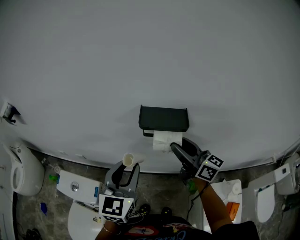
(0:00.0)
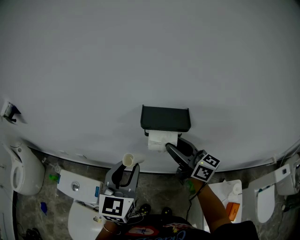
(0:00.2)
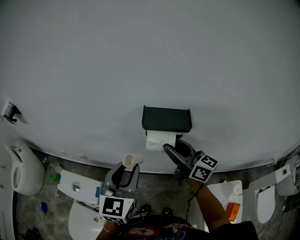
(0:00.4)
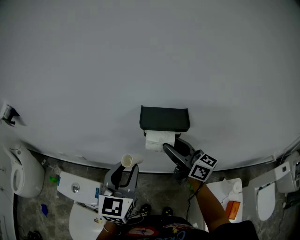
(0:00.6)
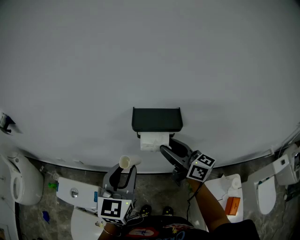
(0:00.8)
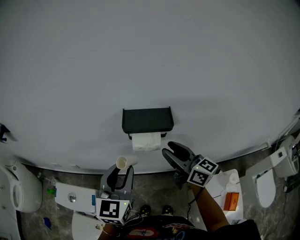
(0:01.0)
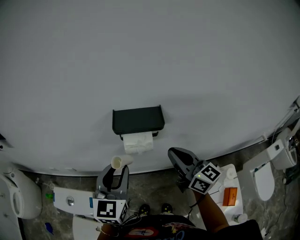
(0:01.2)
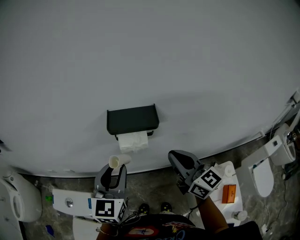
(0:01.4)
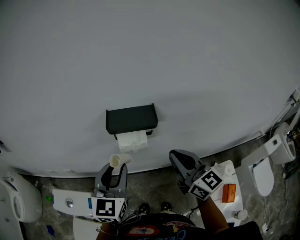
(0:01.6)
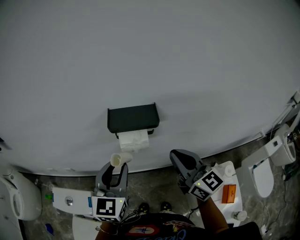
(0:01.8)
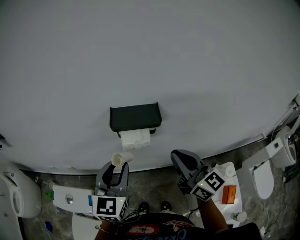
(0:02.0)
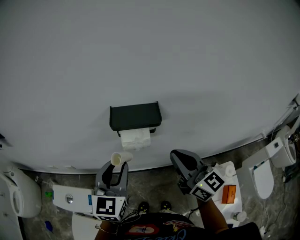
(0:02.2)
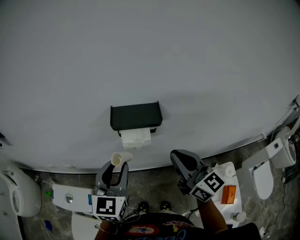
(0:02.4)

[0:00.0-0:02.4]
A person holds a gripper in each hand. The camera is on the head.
0:00.0 to 0:01.2: The right gripper goes approximately 5 cm backward, and closes.
0:01.2 to 0:02.4: The grippers stay close to where they were, moving slightly.

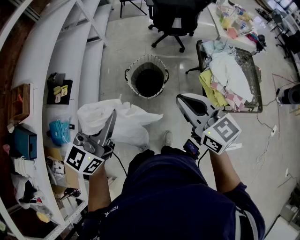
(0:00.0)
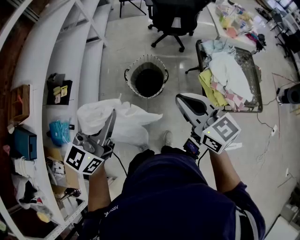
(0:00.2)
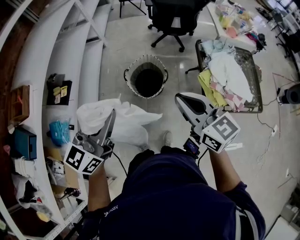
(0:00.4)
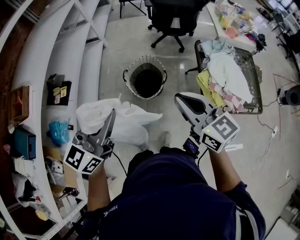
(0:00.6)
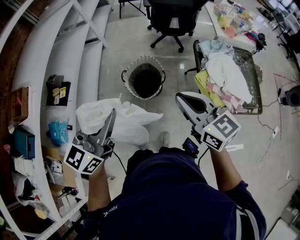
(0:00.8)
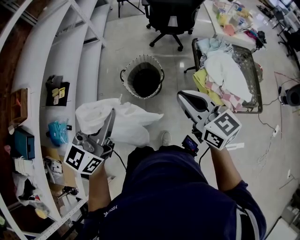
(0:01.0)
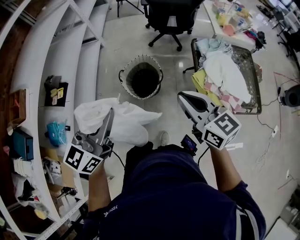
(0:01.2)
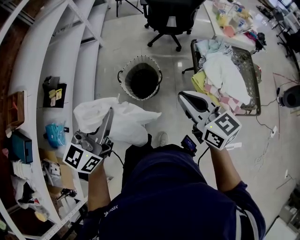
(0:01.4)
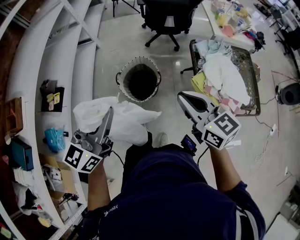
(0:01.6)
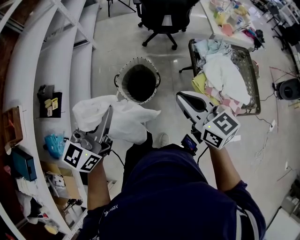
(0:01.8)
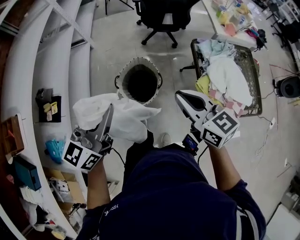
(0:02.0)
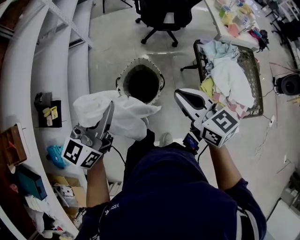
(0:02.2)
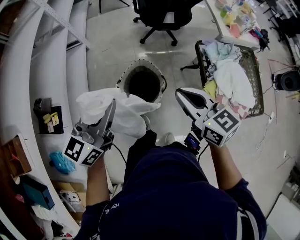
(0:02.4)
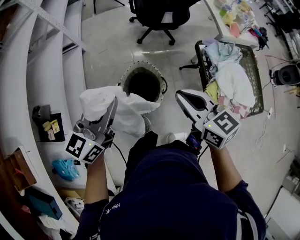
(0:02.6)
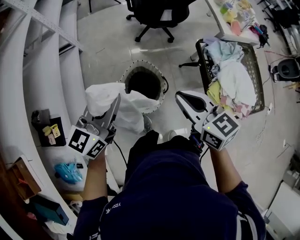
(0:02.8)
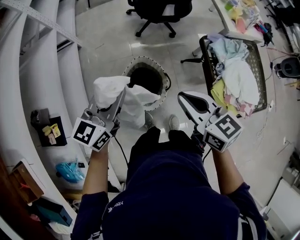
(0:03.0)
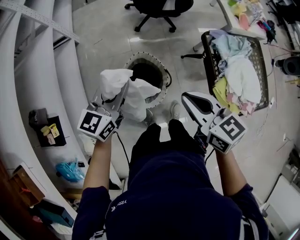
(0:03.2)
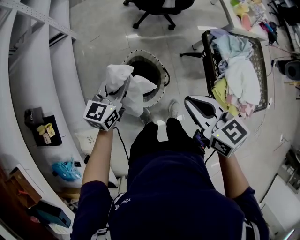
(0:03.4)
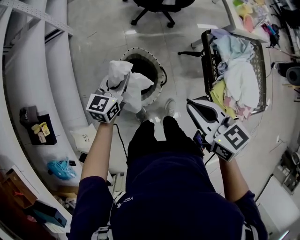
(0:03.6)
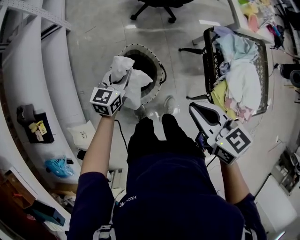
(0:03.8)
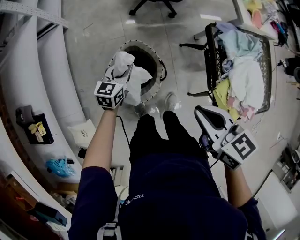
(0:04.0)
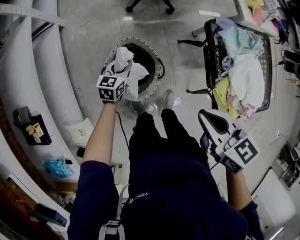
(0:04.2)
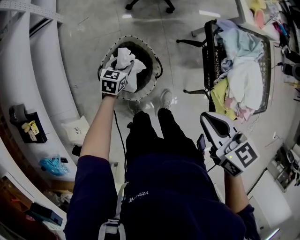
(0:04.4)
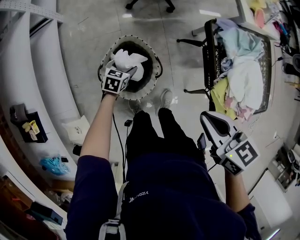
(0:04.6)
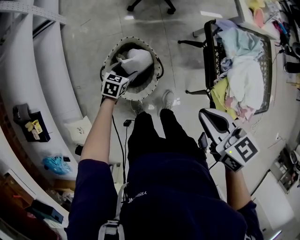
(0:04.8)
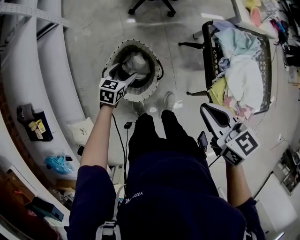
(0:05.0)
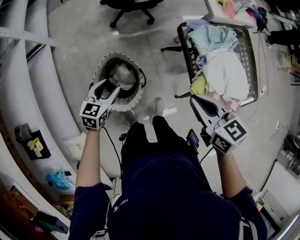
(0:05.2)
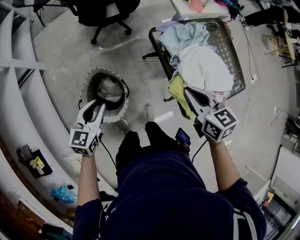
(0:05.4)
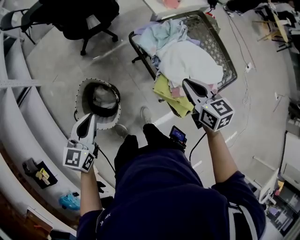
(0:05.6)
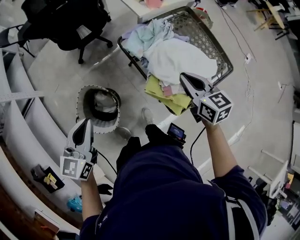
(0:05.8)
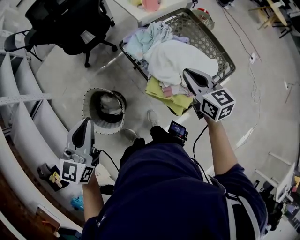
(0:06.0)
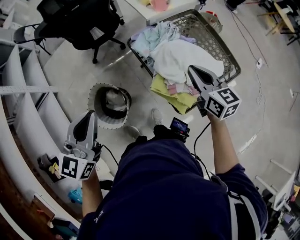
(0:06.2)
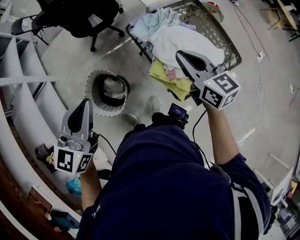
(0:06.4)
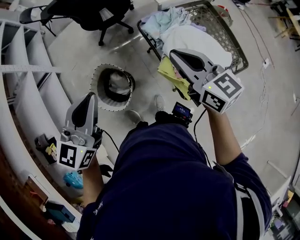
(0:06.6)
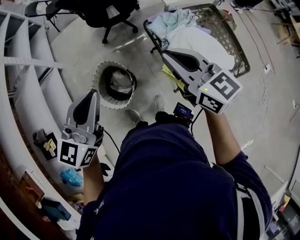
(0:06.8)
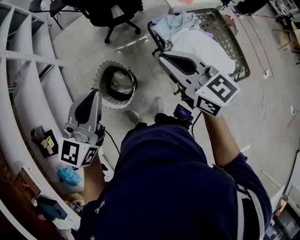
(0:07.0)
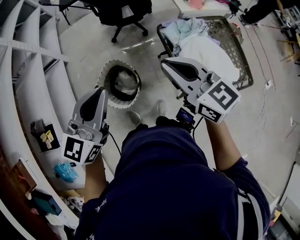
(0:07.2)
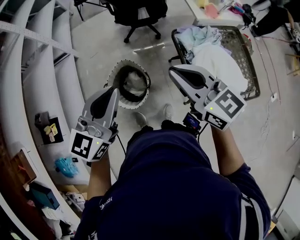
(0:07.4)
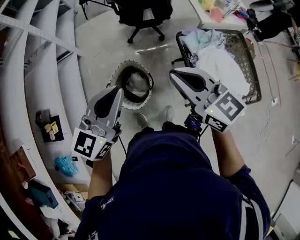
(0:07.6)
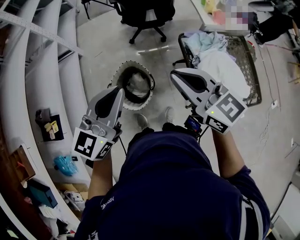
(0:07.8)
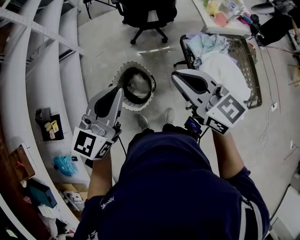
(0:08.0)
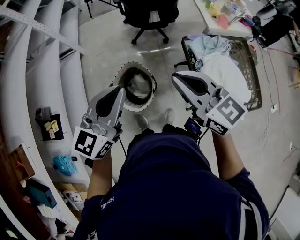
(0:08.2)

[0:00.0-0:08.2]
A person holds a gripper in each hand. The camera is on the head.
0:00.0 to 0:01.6: The right gripper is displaced to the right and forward by about 10 cm. The left gripper heads forward and to the right, covering approximately 10 cm.
0:01.6 to 0:03.2: The left gripper goes about 35 cm forward and downward. The right gripper is displaced forward, to the left and downward by roughly 25 cm.
0:03.2 to 0:05.0: The left gripper is displaced downward by about 30 cm, tips its fingers downward by roughly 30 degrees, and opens. The right gripper shifts about 15 cm to the right and downward.
0:05.0 to 0:06.6: The right gripper moves to the right and upward, roughly 25 cm, and turns by about 30 degrees. Meanwhile the left gripper heads upward and to the right, covering some 50 cm, points its fingers some 30 degrees further upward, and closes its fingers.
0:06.6 to 0:08.2: The right gripper is displaced to the left by about 20 cm, and swivels about 20 degrees, while the left gripper is displaced to the left by approximately 10 cm.

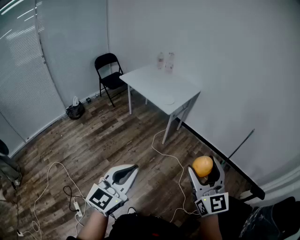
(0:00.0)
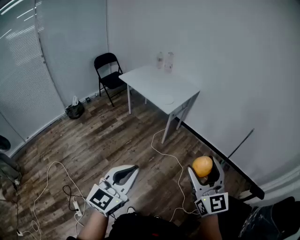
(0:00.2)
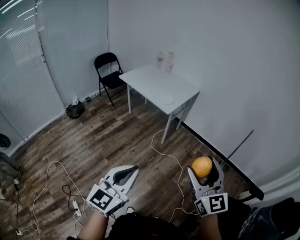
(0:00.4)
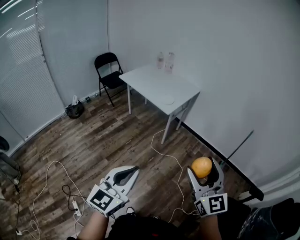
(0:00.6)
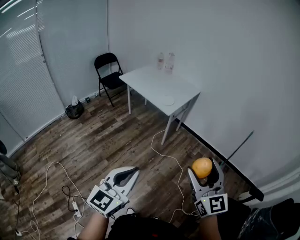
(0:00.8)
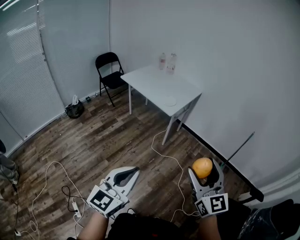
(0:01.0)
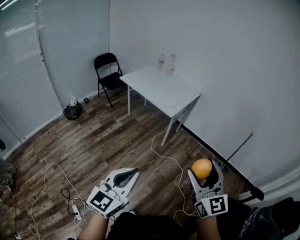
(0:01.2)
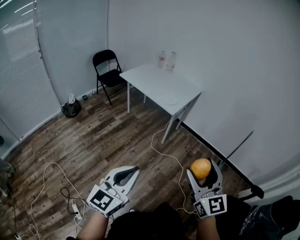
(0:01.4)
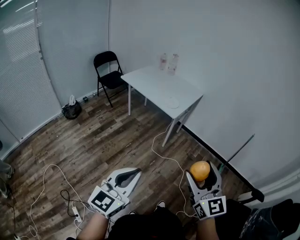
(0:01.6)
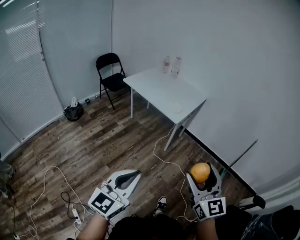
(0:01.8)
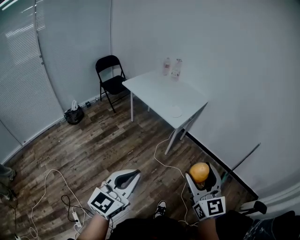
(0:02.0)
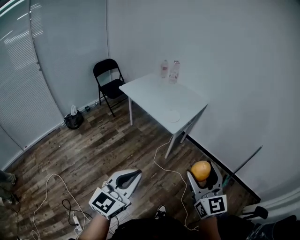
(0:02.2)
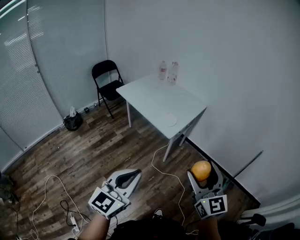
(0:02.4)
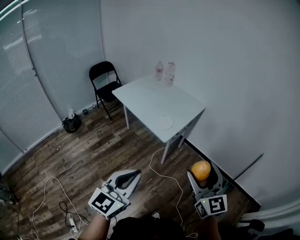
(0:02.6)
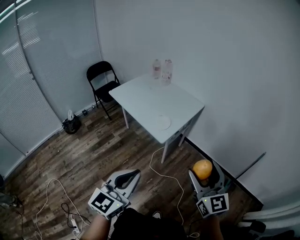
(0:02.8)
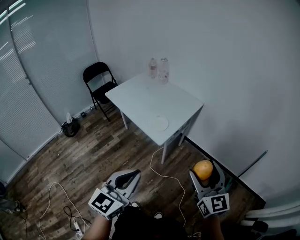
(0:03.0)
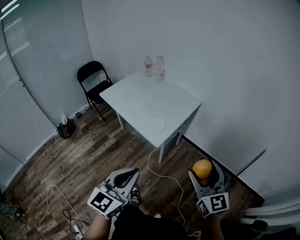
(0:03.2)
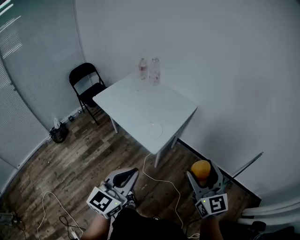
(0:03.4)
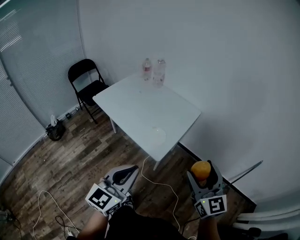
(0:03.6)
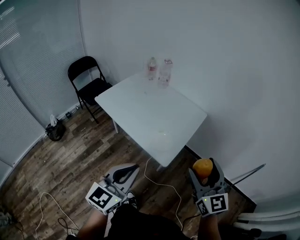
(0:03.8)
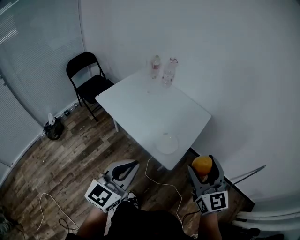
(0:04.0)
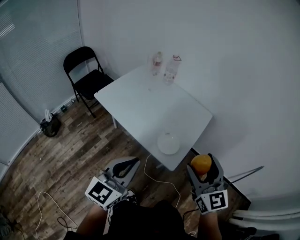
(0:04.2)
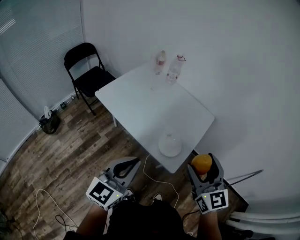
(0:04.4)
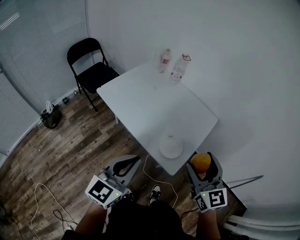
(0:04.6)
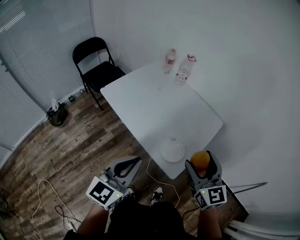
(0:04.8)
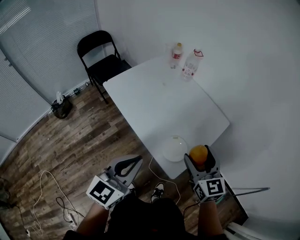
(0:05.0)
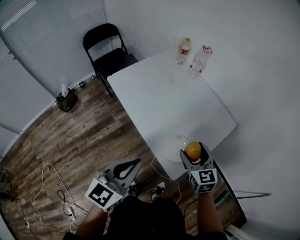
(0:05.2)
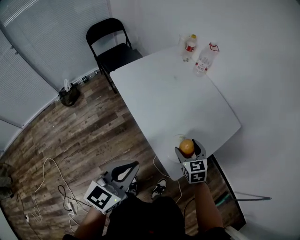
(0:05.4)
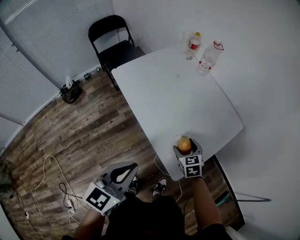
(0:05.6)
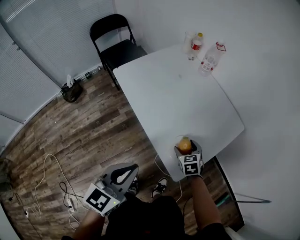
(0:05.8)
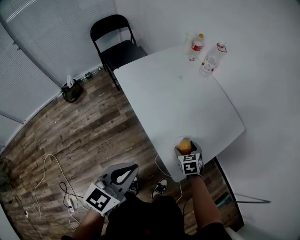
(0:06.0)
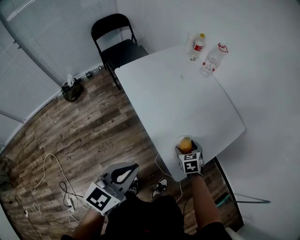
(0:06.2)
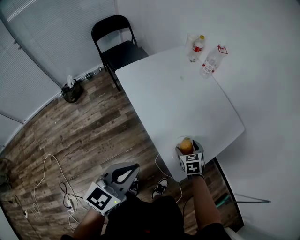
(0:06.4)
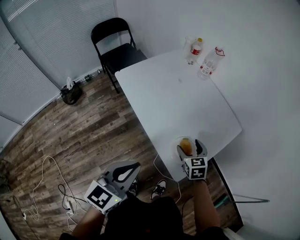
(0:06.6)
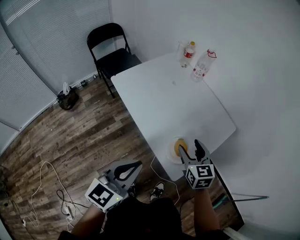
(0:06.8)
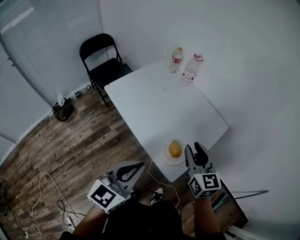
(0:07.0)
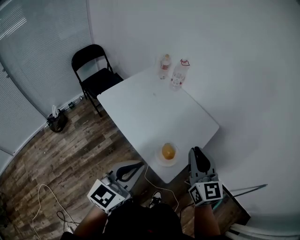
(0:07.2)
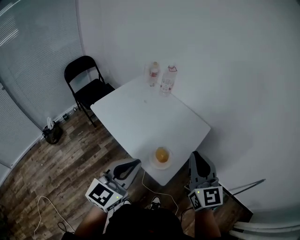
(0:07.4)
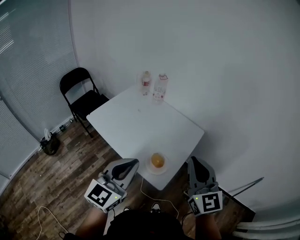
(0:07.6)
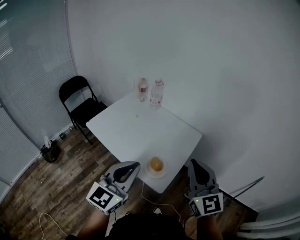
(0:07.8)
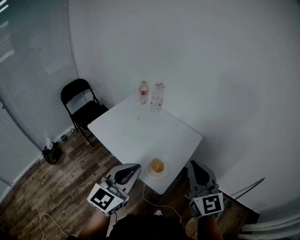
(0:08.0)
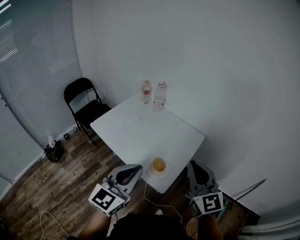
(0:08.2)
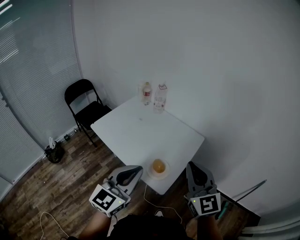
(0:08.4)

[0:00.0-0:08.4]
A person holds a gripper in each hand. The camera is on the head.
0:00.0 to 0:01.4: Both grippers move to the left, about 5 cm.
0:01.4 to 0:02.8: The two grippers go approximately 35 cm forward.
0:02.8 to 0:04.2: The grippers both shift forward and to the left by some 40 cm.
0:04.2 to 0:05.6: The left gripper is displaced downward and forward by some 15 cm, and rotates roughly 20 degrees. The right gripper shifts approximately 40 cm downward and forward, and angles its fingers downward, by approximately 40 degrees.
0:05.6 to 0:07.0: The left gripper travels upward by roughly 5 cm, while the right gripper travels upward by roughly 25 cm, points its fingers some 30 degrees further upward, and closes.
0:07.0 to 0:08.4: The right gripper travels upward, backward and to the right by some 20 cm, swivels approximately 20 degrees, and closes. The left gripper travels upward and to the right by about 10 cm.

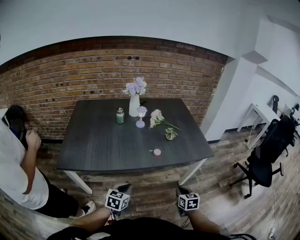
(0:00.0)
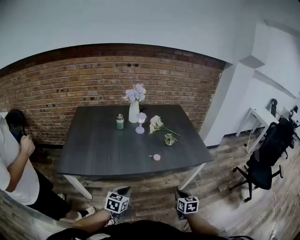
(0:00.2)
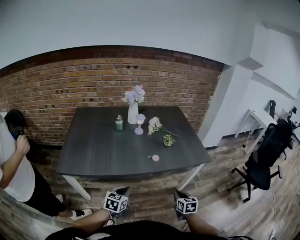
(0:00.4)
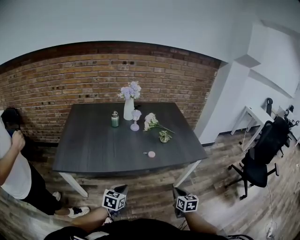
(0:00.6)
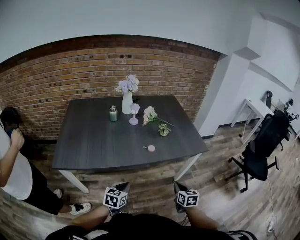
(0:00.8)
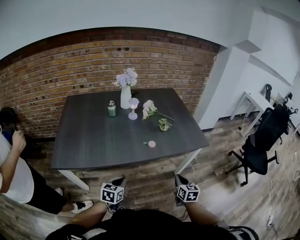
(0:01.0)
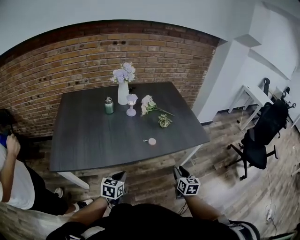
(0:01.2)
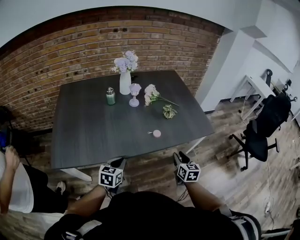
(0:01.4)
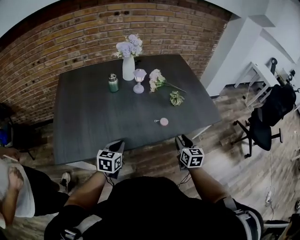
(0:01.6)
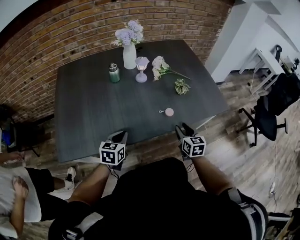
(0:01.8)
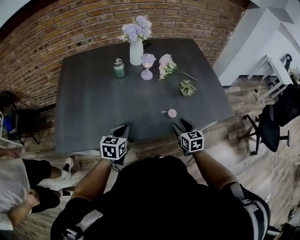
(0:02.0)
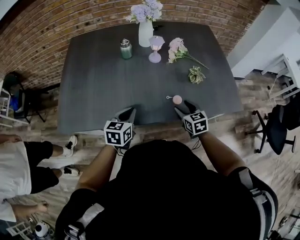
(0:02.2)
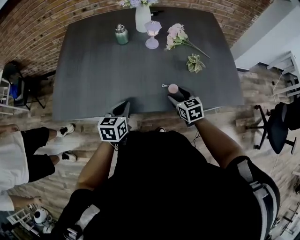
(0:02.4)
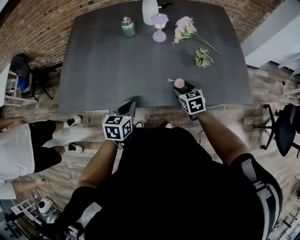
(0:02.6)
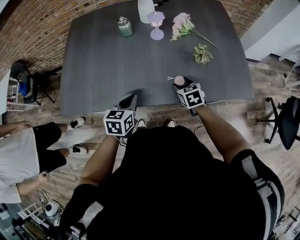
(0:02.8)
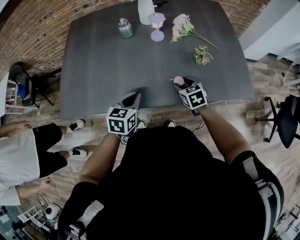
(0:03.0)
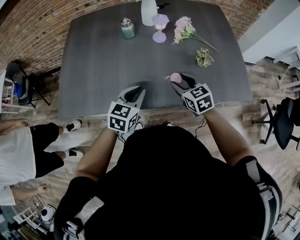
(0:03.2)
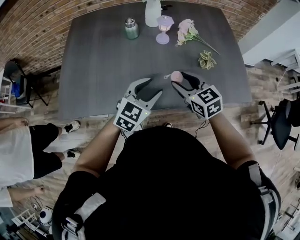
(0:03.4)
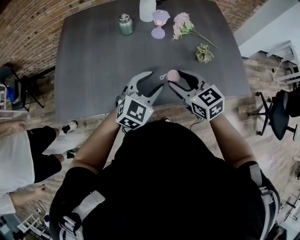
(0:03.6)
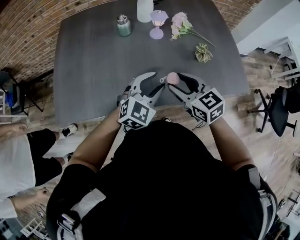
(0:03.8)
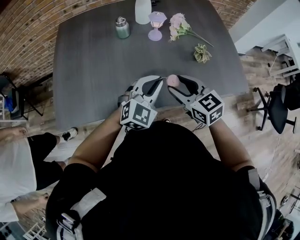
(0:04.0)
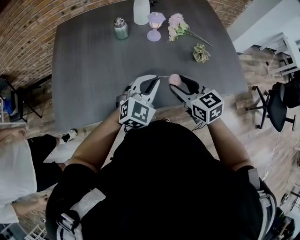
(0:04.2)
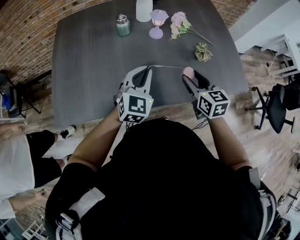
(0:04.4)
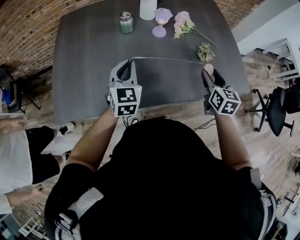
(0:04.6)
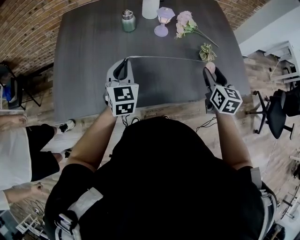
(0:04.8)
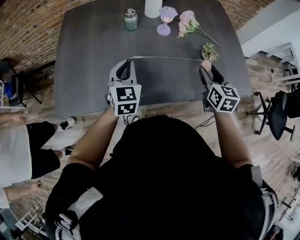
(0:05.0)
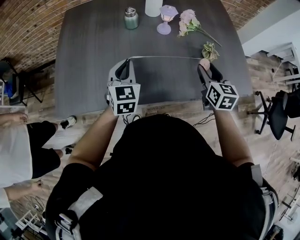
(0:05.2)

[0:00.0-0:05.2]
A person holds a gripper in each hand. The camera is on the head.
0:00.0 to 0:01.8: The grippers both shift forward and to the left by approximately 20 cm. The right gripper opens.
0:01.8 to 0:03.4: The left gripper is displaced to the right and upward by roughly 15 cm, swivels about 30 degrees, and opens up. The right gripper goes roughly 15 cm to the left, forward and upward, and changes its angle by some 40 degrees.
0:03.4 to 0:05.2: The right gripper shifts some 10 cm to the right, and swivels roughly 30 degrees. The left gripper shifts about 15 cm to the left and forward, changes its angle by about 30 degrees, and closes its fingers.
